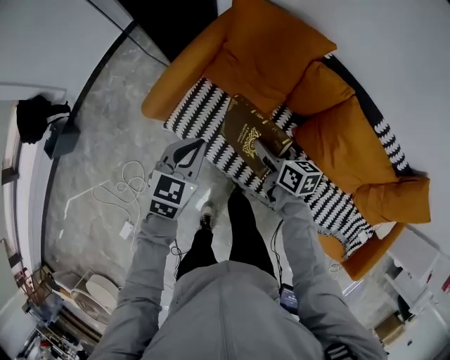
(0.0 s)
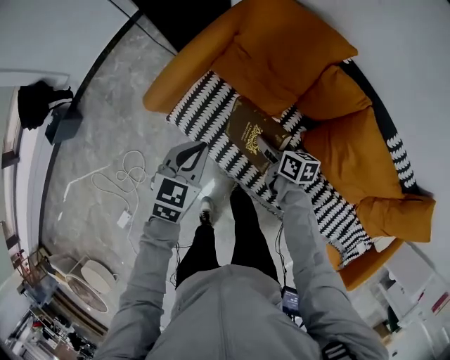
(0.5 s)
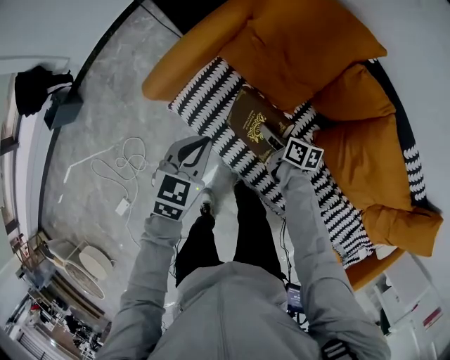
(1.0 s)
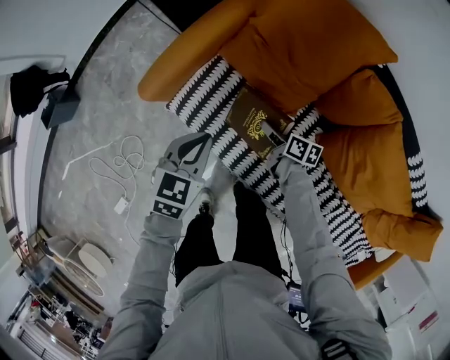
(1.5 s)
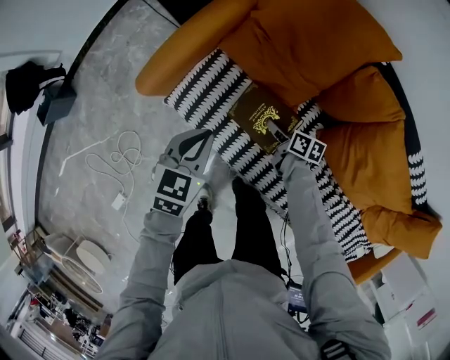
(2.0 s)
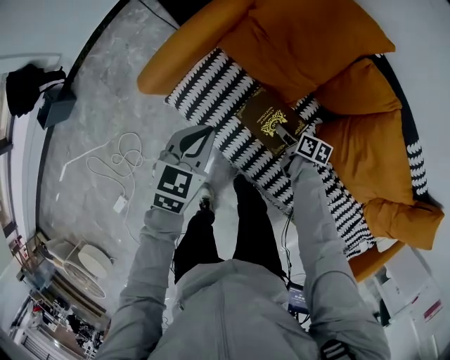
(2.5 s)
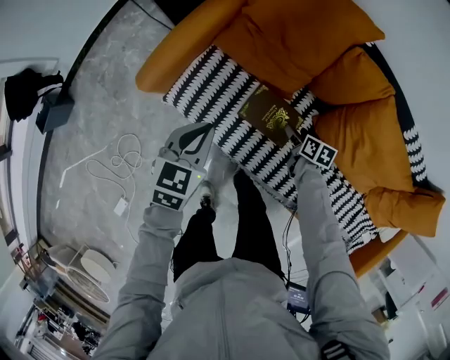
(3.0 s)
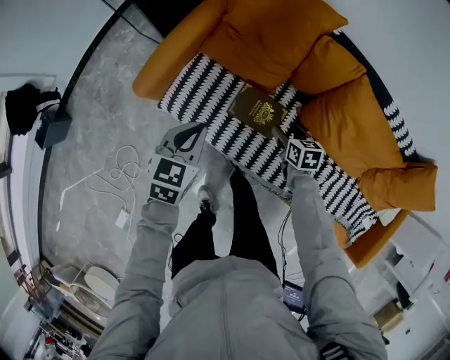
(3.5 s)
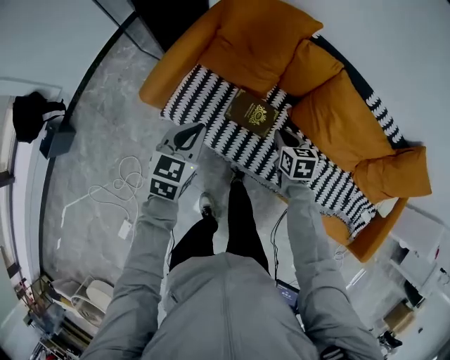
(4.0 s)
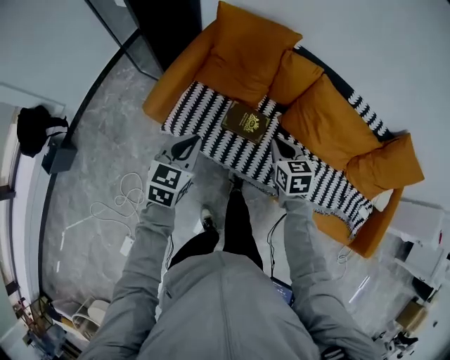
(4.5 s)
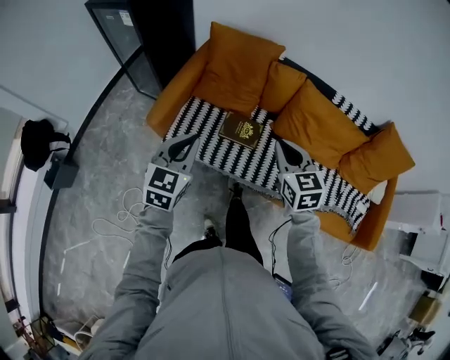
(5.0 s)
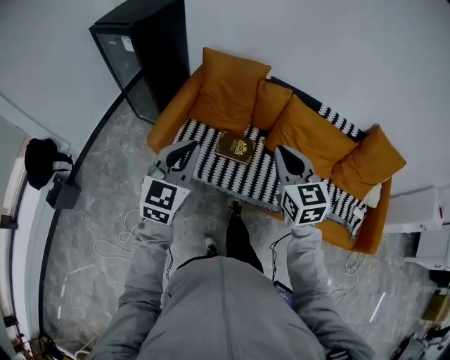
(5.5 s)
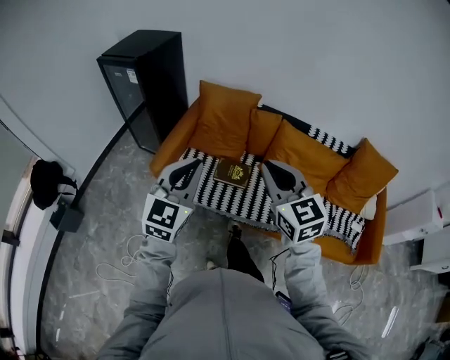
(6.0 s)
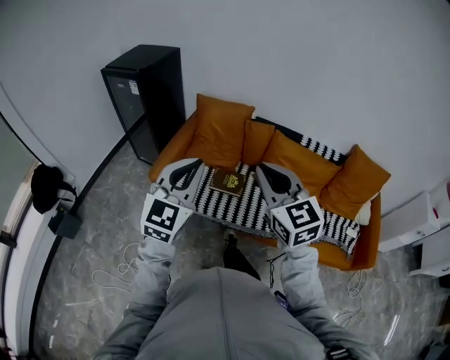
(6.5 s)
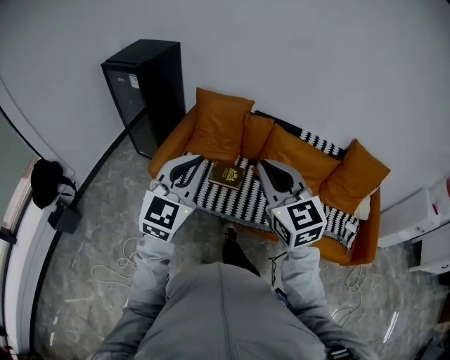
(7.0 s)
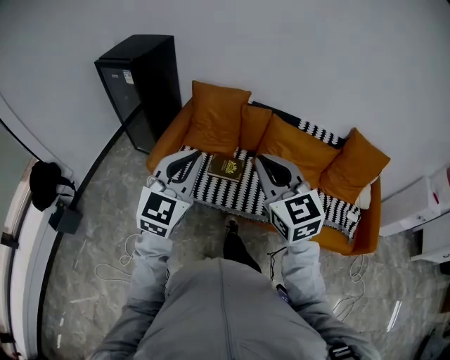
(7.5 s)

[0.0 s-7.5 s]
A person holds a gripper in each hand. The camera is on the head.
0.0 to 2.0 s: The left gripper moves downward, about 10 cm. Meanwhile the right gripper travels downward by approximately 25 cm, and turns by roughly 20 degrees.
2.0 to 4.0 s: The right gripper travels upward by some 20 cm, rotates roughly 40 degrees, and closes, while the left gripper goes some 10 cm upward.
4.0 to 5.5 s: The right gripper travels upward by approximately 30 cm, and swivels about 40 degrees, while the left gripper heads upward, covering roughly 20 cm, and changes its angle by about 30 degrees.
5.5 to 7.5 s: Both grippers travel together upward and backward, roughly 15 cm.

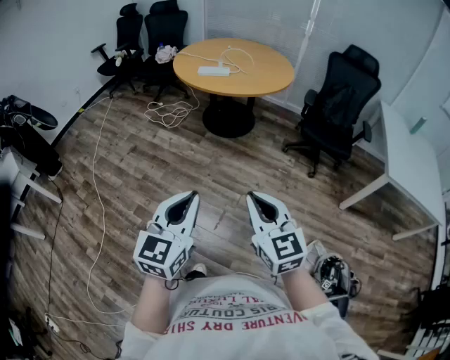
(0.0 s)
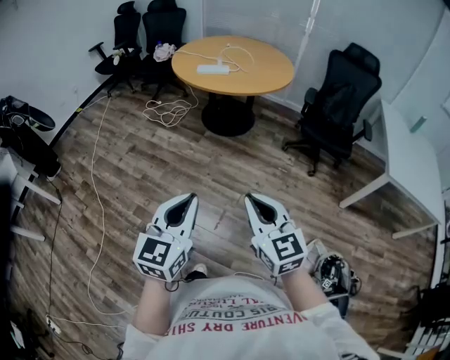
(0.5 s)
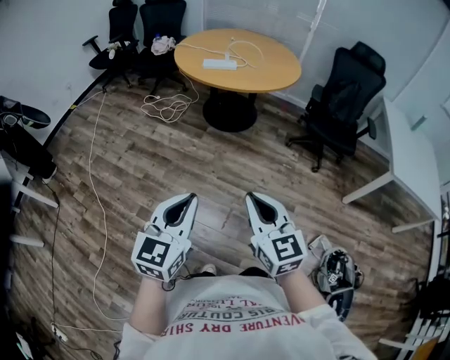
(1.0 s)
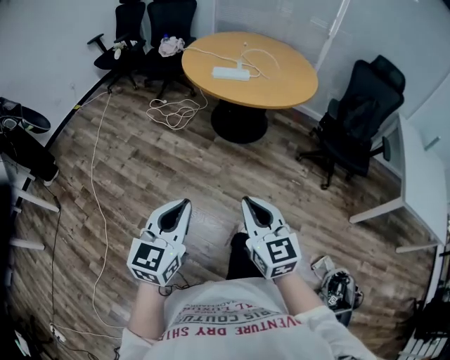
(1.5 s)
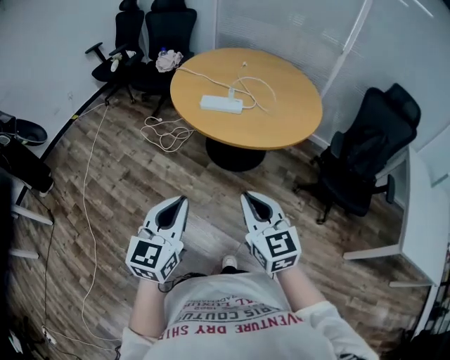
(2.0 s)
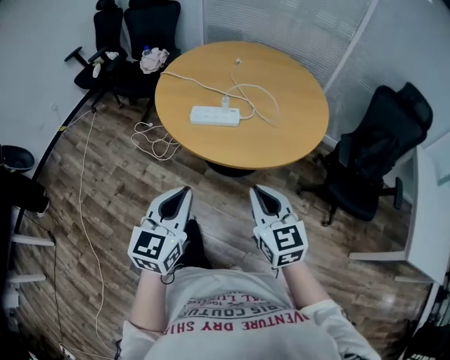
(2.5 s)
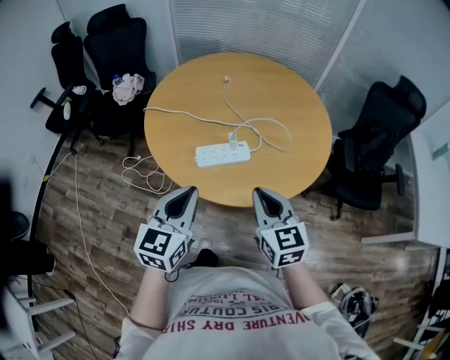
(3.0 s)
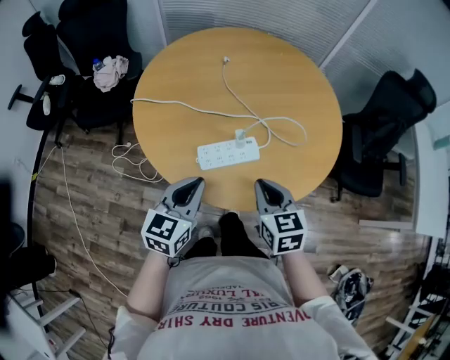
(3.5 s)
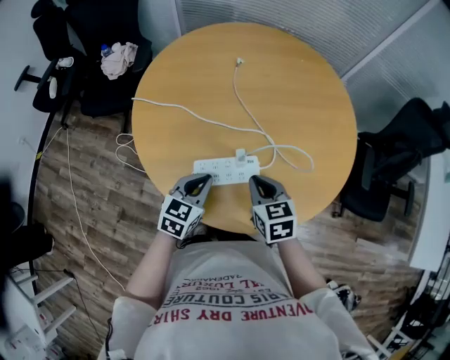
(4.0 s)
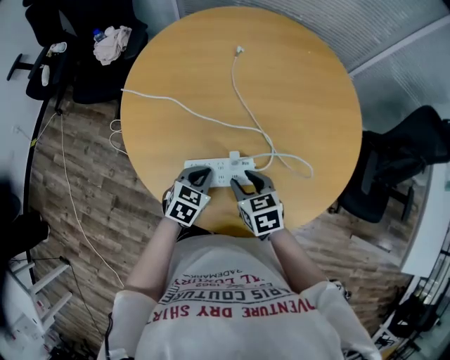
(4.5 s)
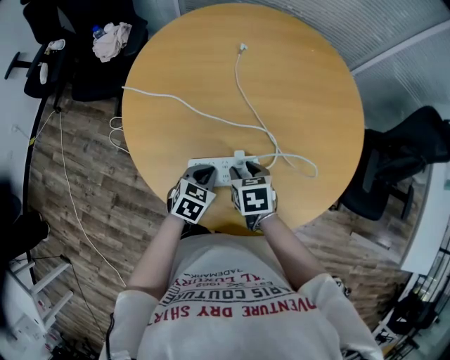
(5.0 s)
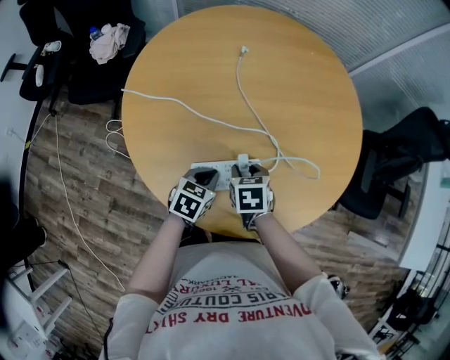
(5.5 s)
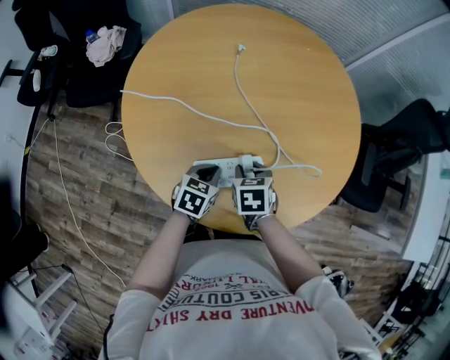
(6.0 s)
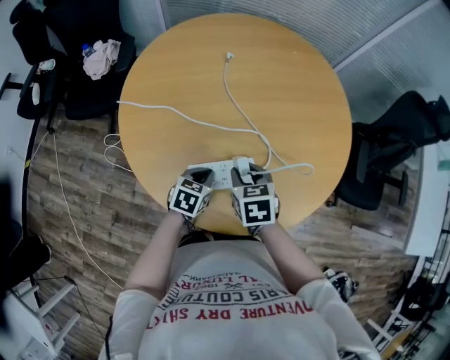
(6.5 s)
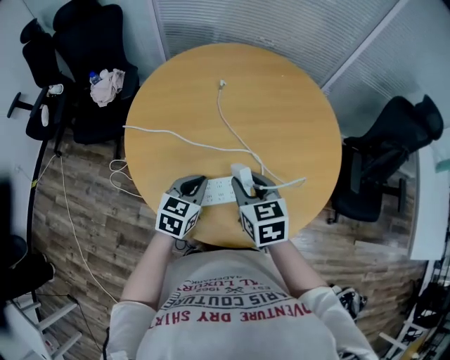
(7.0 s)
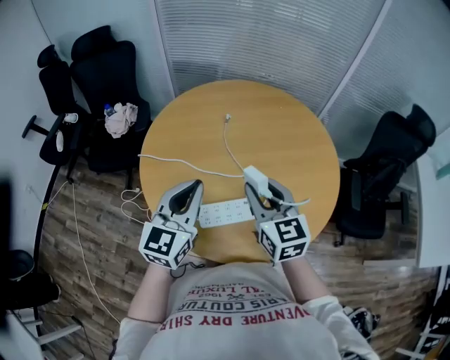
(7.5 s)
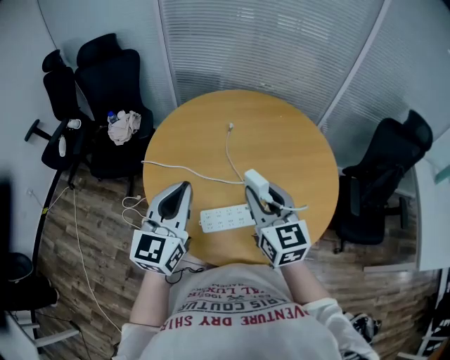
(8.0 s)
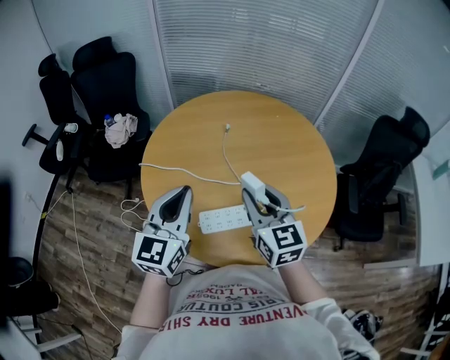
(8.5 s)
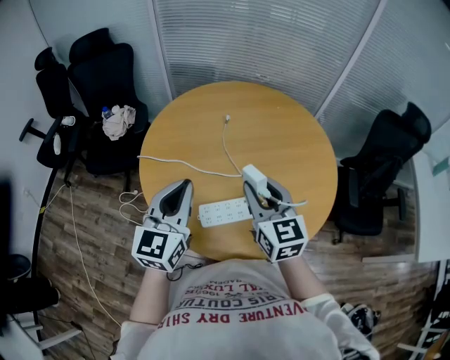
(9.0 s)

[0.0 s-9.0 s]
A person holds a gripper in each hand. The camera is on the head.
0.0 to 2.0 s: Both grippers move forward, about 40 cm.
2.0 to 4.5 s: The two grippers travel together, about 60 cm. The left gripper tips its fingers downward by about 40 degrees. Meanwhile the right gripper tips its fingers downward by approximately 40 degrees, and opens its fingers.
4.5 to 7.0 s: The two grippers go some 10 cm upward.
7.0 to 9.0 s: The left gripper is displaced upward by some 20 cm, and rotates some 30 degrees; the right gripper travels upward by about 15 cm, and turns by about 20 degrees.

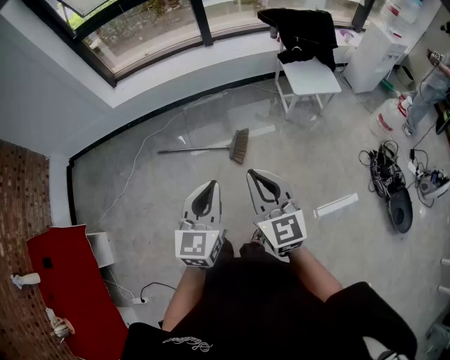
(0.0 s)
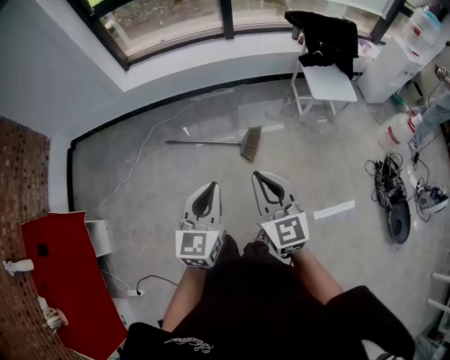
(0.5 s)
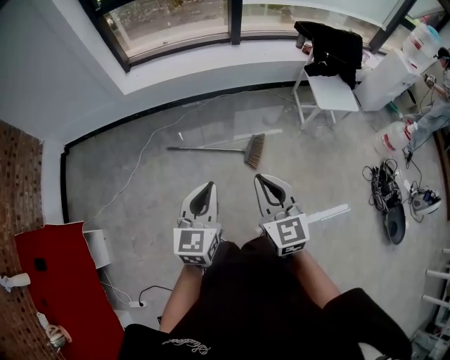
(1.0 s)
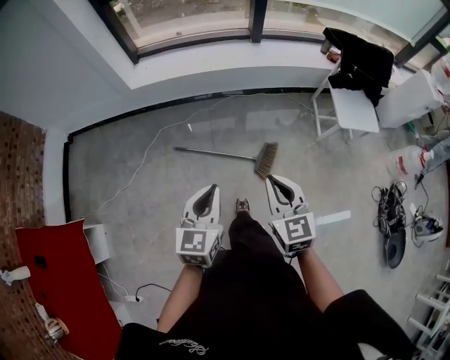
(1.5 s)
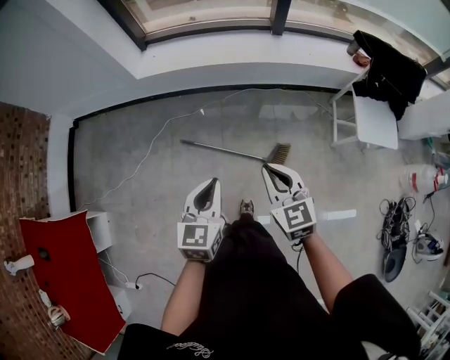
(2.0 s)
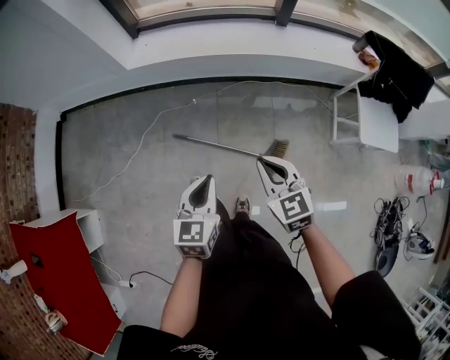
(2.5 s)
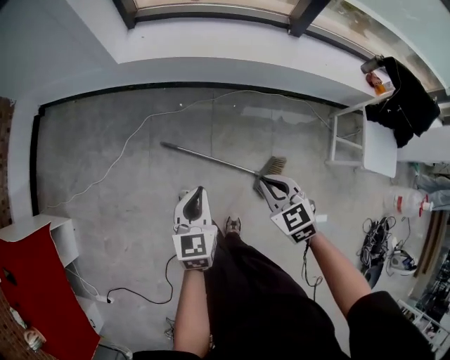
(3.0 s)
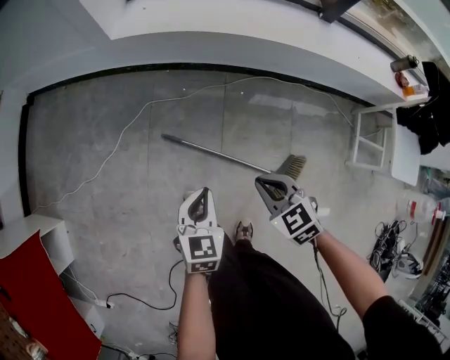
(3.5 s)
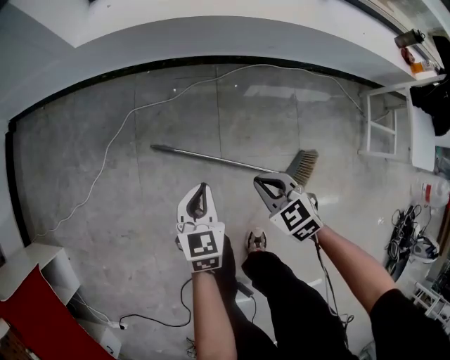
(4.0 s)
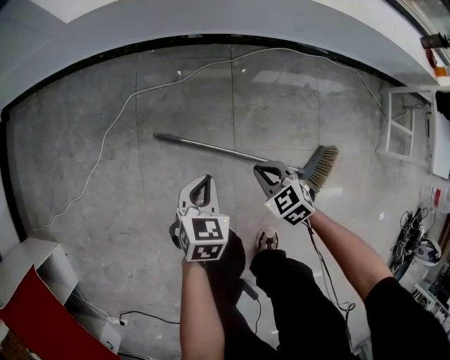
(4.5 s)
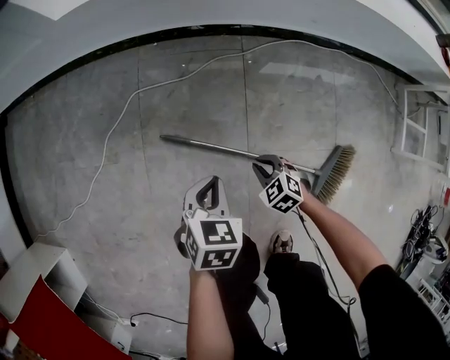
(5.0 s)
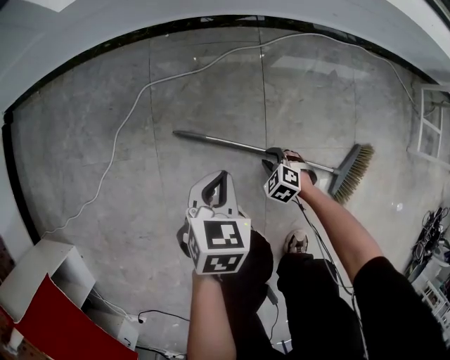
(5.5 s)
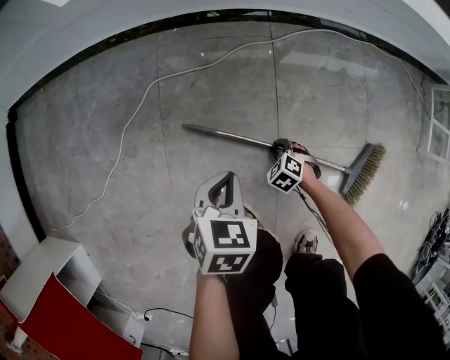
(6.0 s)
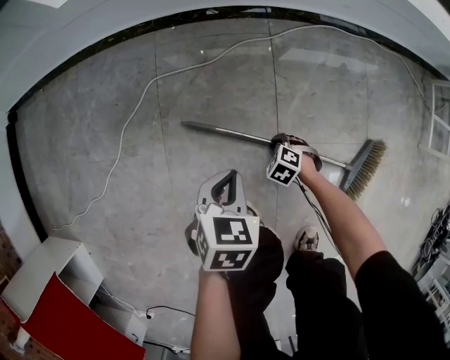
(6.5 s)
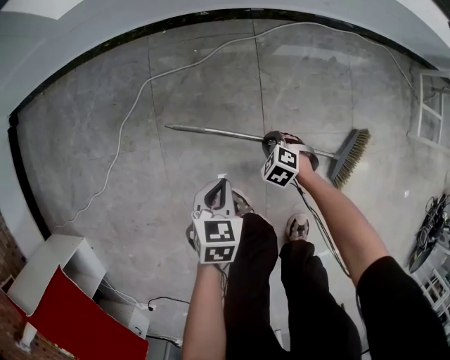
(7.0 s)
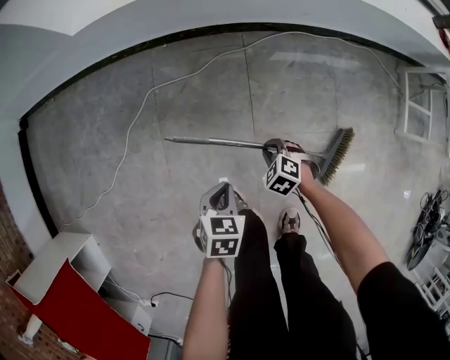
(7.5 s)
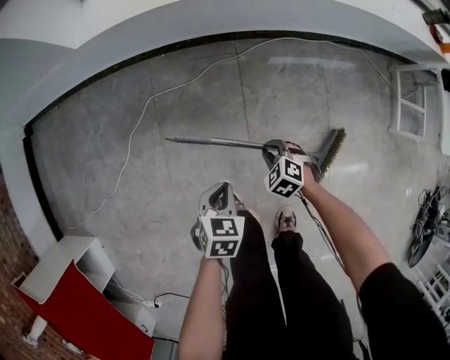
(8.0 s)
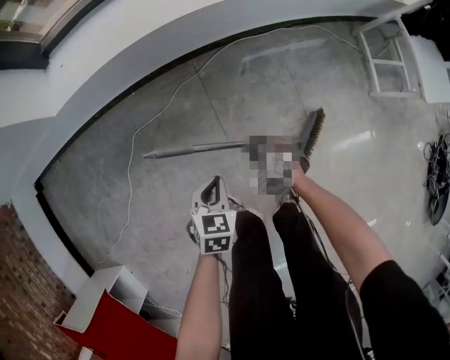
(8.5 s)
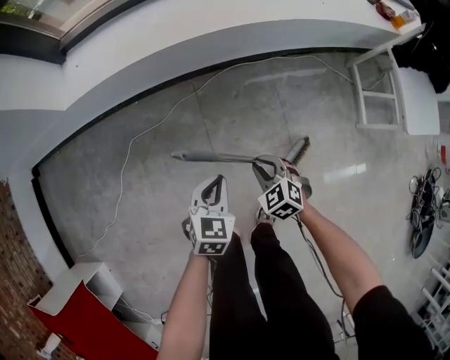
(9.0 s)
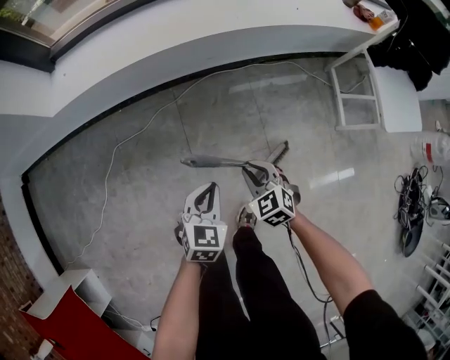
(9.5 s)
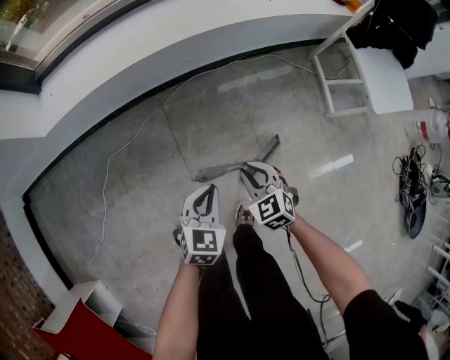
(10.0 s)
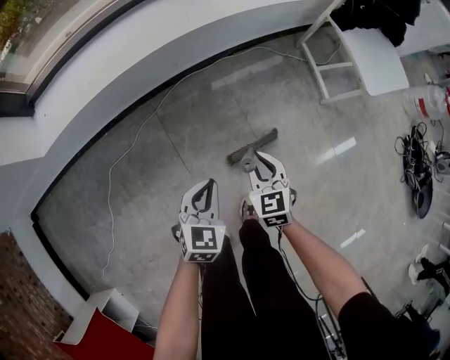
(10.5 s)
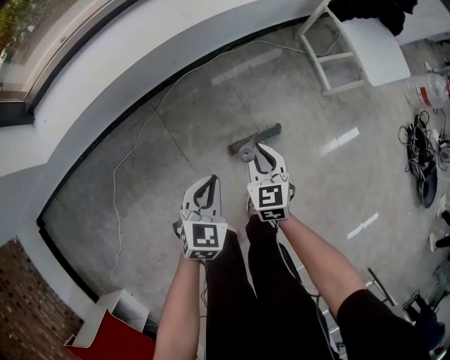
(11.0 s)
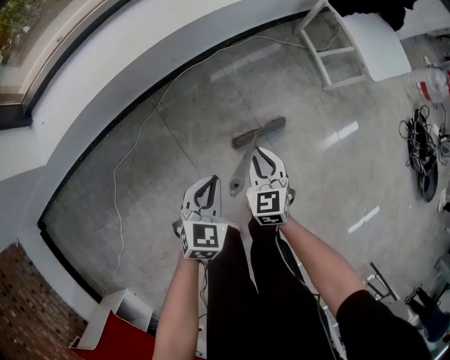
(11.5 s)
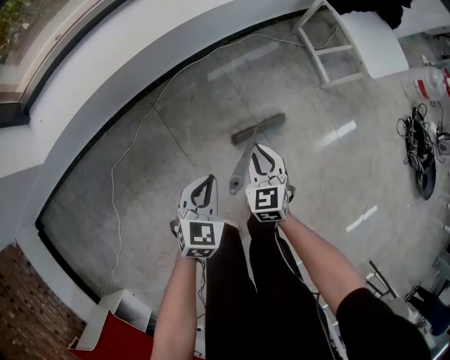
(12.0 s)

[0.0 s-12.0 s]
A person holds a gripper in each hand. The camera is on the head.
0.0 to 2.0 s: Both grippers travel together forward and to the left, roughly 35 cm. The right gripper changes its angle by some 20 degrees.
2.0 to 4.0 s: The right gripper shifts roughly 50 cm downward, and changes its angle by about 30 degrees. The left gripper goes approximately 50 cm downward and forward.
4.0 to 6.0 s: The right gripper moves downward, approximately 40 cm, changes its angle by about 30 degrees, and opens up, while the left gripper goes roughly 15 cm downward, and changes its angle by some 20 degrees.
6.0 to 8.0 s: The right gripper heads upward, covering some 25 cm; the left gripper heads upward, covering approximately 10 cm.
8.0 to 10.0 s: Both grippers travel together to the right and upward, about 30 cm. The left gripper changes its angle by about 30 degrees; the right gripper rotates some 40 degrees.
10.0 to 12.0 s: The right gripper rotates some 30 degrees.
